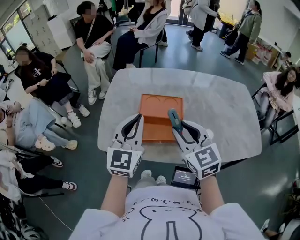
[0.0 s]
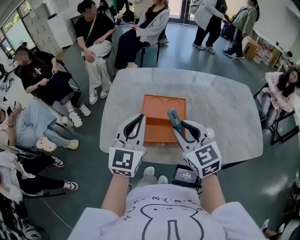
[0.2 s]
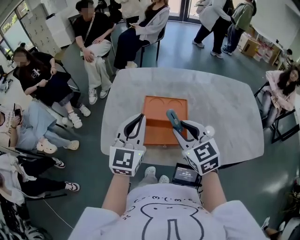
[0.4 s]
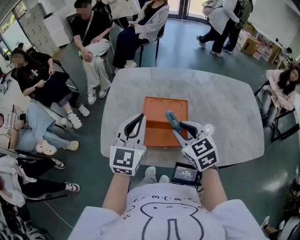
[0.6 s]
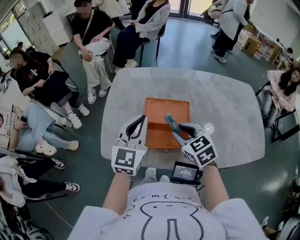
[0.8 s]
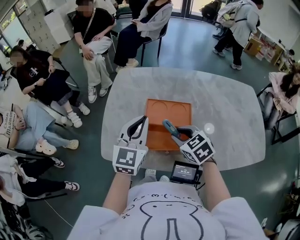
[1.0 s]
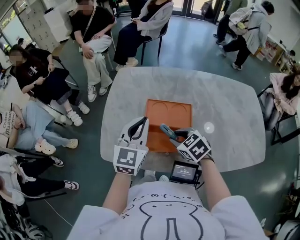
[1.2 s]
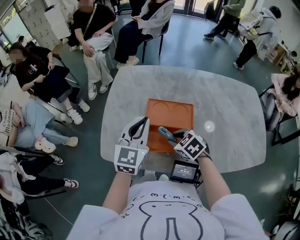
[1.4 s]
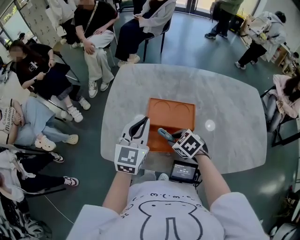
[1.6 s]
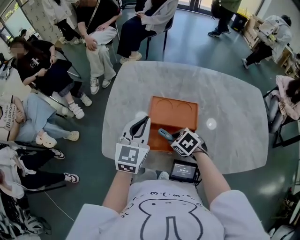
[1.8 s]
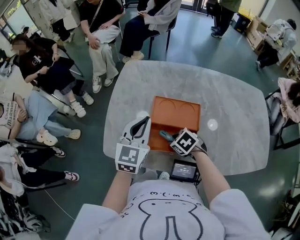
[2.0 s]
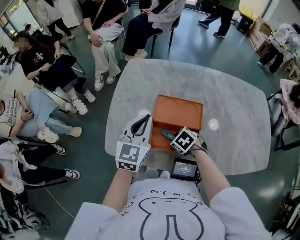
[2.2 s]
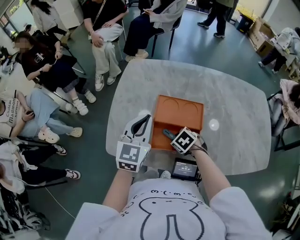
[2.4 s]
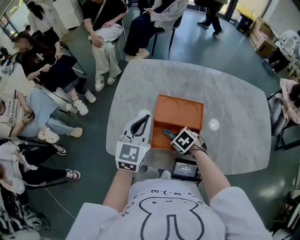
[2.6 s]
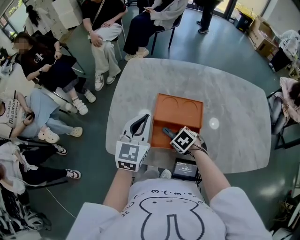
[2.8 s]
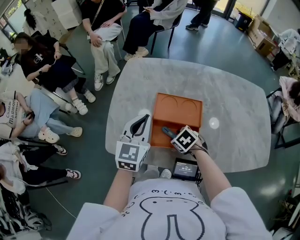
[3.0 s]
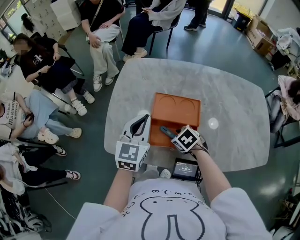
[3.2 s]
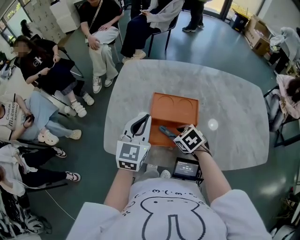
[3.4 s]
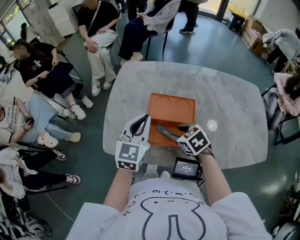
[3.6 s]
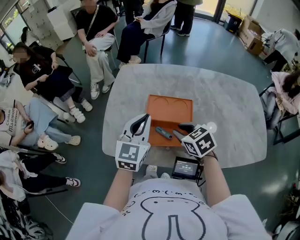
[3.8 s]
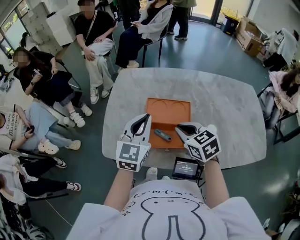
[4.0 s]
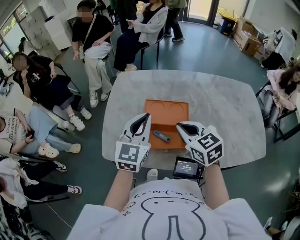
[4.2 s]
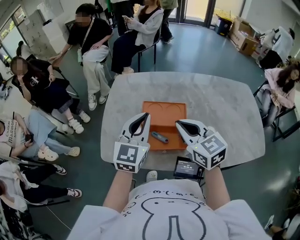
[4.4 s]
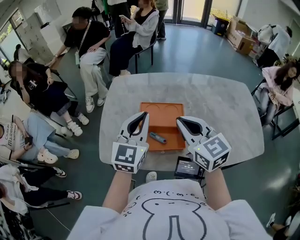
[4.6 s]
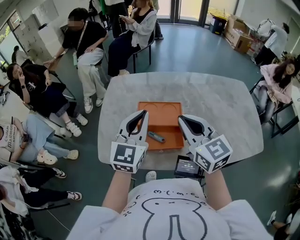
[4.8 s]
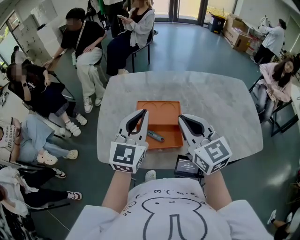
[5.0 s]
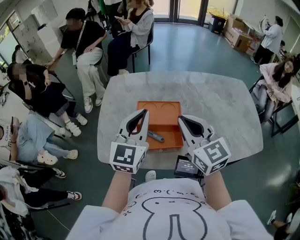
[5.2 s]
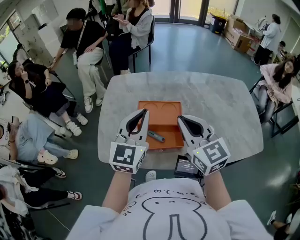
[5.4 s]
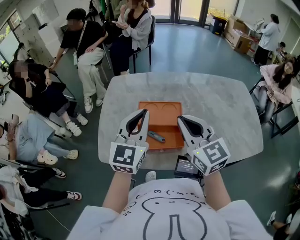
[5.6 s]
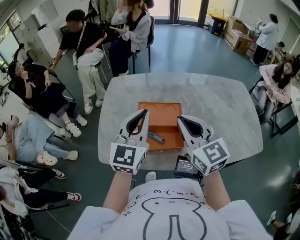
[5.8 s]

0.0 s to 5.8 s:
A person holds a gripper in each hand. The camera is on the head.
0.0 to 1.4 s: The right gripper travels downward by about 20 cm, and points its fingers roughly 40 degrees further downward. Meanwhile the left gripper shifts some 10 cm forward and downward.
1.4 to 2.8 s: The right gripper goes some 10 cm downward.
2.8 to 4.4 s: The right gripper travels upward by some 25 cm, angles its fingers upward, by approximately 50 degrees, and closes up. Meanwhile the left gripper moves upward, about 5 cm.
4.4 to 5.8 s: The right gripper goes roughly 5 cm upward.

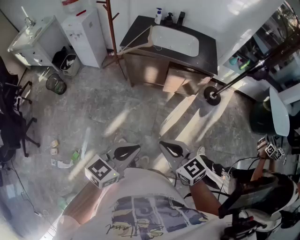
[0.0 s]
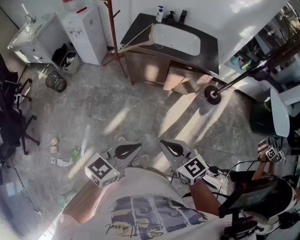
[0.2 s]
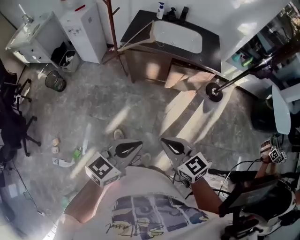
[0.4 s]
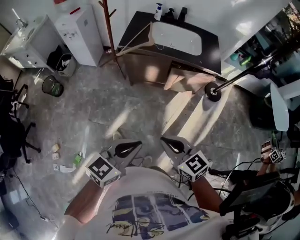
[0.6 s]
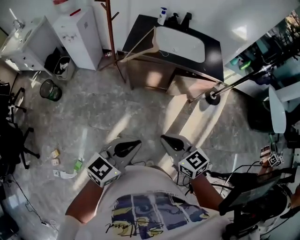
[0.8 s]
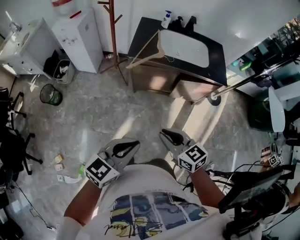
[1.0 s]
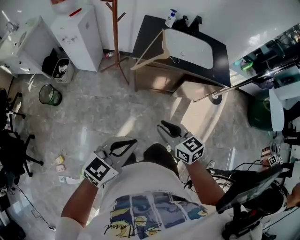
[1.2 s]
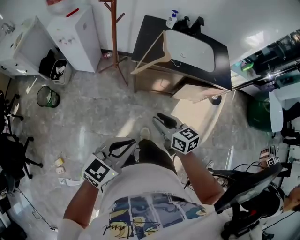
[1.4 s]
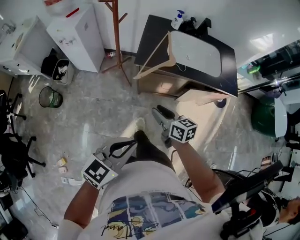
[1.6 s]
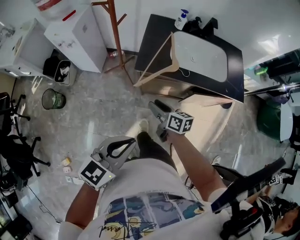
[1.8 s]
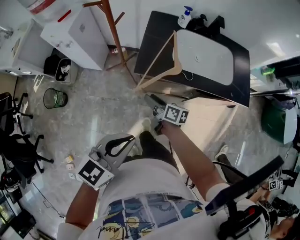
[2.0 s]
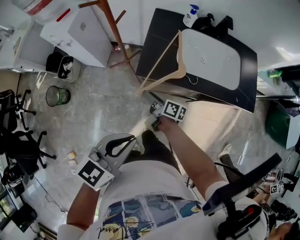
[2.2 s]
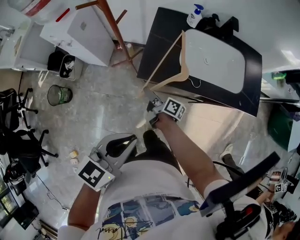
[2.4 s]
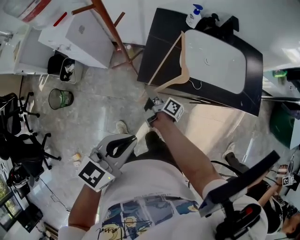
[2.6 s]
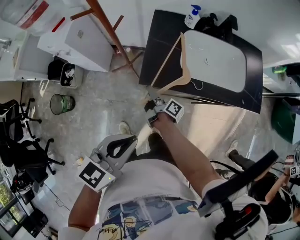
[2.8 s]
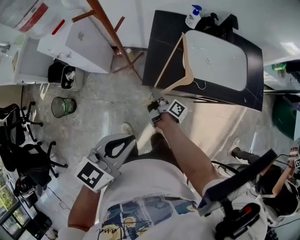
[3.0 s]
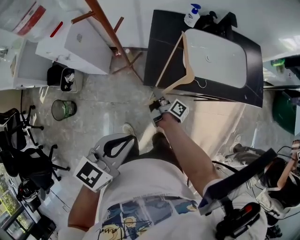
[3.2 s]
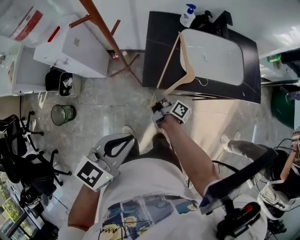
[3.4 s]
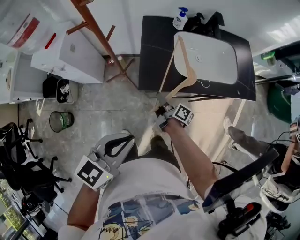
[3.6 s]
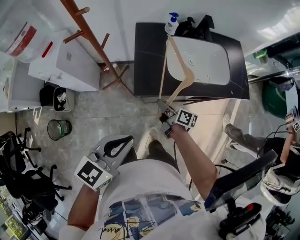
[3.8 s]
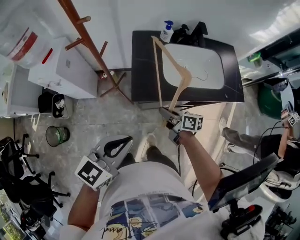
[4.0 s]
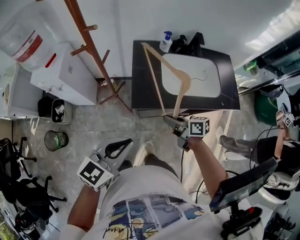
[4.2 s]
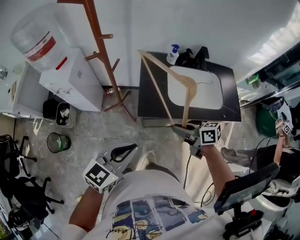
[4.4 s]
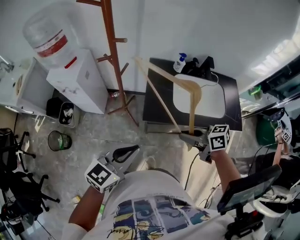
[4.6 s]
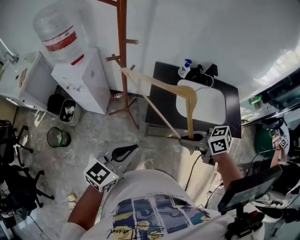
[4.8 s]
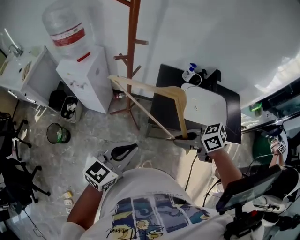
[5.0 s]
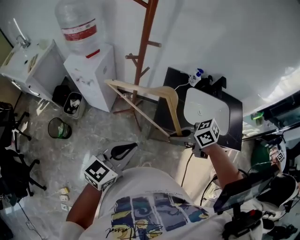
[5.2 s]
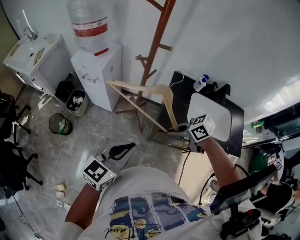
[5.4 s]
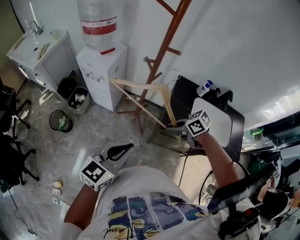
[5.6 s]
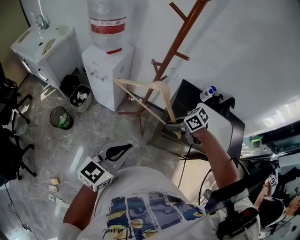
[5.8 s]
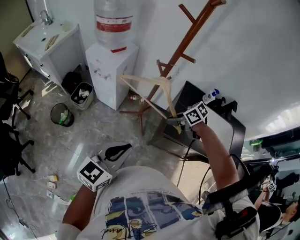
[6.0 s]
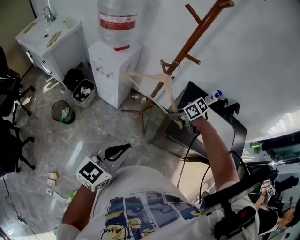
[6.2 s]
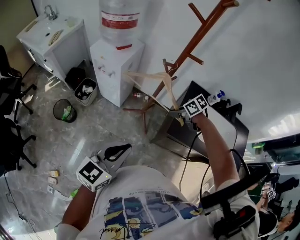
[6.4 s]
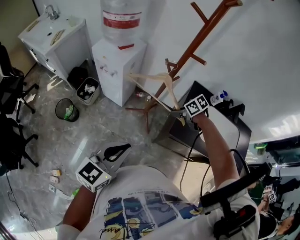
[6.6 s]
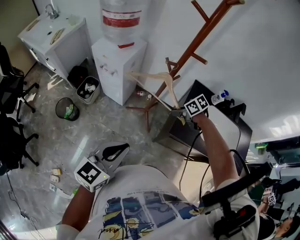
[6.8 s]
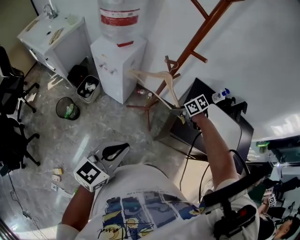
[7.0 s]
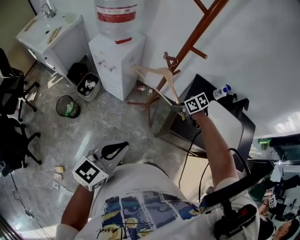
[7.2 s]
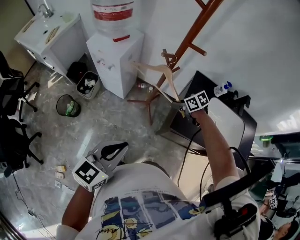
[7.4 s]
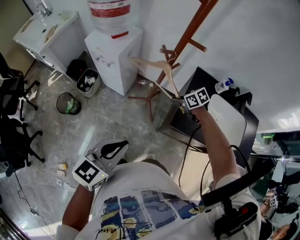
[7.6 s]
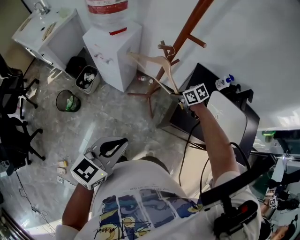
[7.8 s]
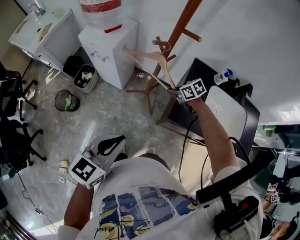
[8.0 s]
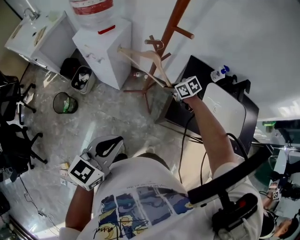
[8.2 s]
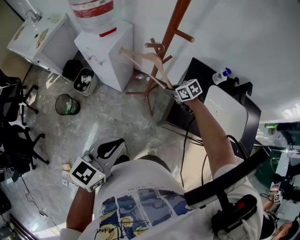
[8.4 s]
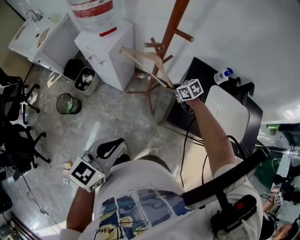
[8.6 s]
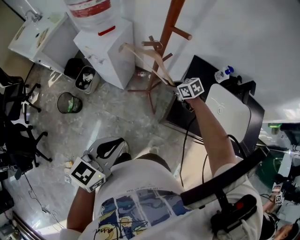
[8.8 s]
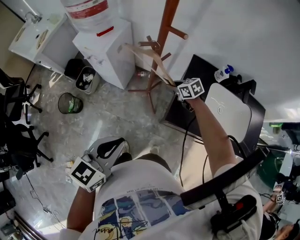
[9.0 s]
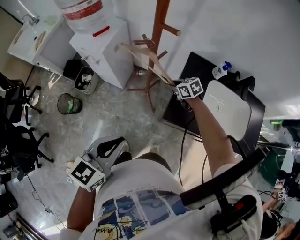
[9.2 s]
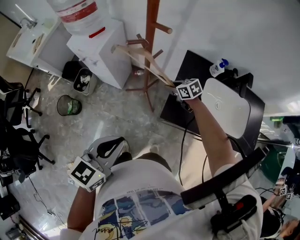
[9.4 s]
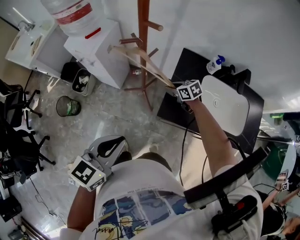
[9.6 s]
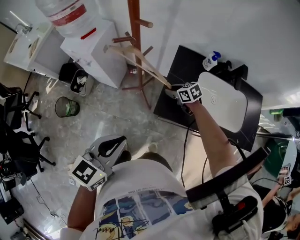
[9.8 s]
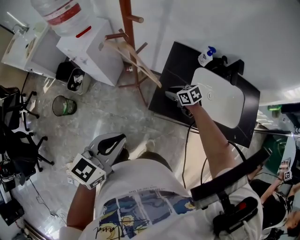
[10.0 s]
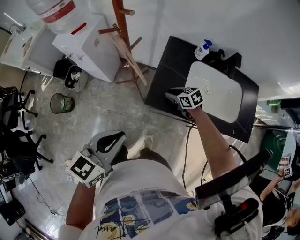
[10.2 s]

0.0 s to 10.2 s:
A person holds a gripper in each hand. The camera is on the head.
0.0 to 1.4 s: The right gripper is displaced forward and to the left by about 35 cm, rotates about 20 degrees, and opens. Meanwhile the left gripper moves to the left and forward, some 30 cm.
1.4 to 3.0 s: The left gripper goes approximately 25 cm forward. The right gripper is displaced forward and downward by roughly 35 cm, twists roughly 70 degrees clockwise, seen from behind, and opens, then closes again.
3.0 to 4.4 s: The right gripper heads upward and to the right, covering roughly 25 cm, and twists some 50 degrees counterclockwise, seen from behind.
4.4 to 5.8 s: The left gripper shifts by roughly 15 cm, and changes its angle by roughly 20 degrees. Meanwhile the right gripper travels upward and back again, about 5 cm each way, and turns by about 50 degrees.
5.8 to 7.2 s: The right gripper changes place by about 15 cm.
7.2 to 8.8 s: The right gripper shifts some 5 cm forward.
8.8 to 10.2 s: The right gripper travels backward and to the right by approximately 20 cm. Meanwhile the left gripper heads to the right, covering approximately 10 cm.

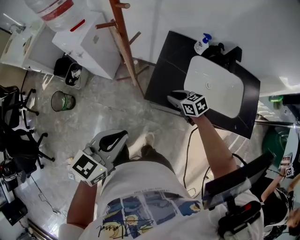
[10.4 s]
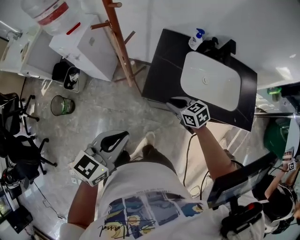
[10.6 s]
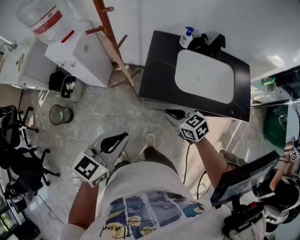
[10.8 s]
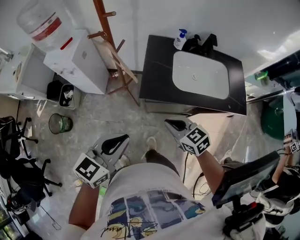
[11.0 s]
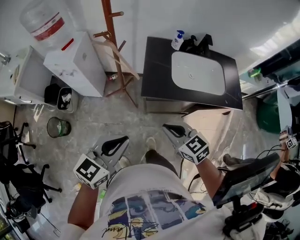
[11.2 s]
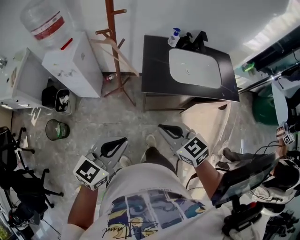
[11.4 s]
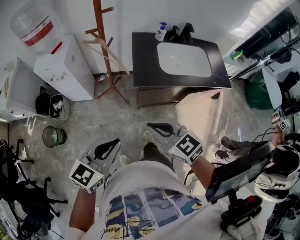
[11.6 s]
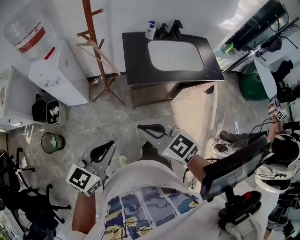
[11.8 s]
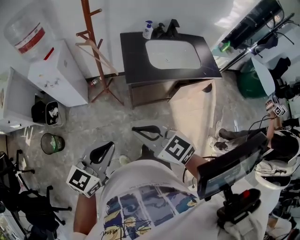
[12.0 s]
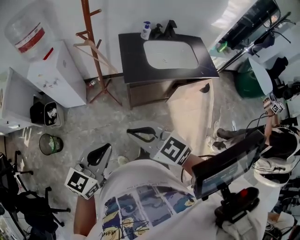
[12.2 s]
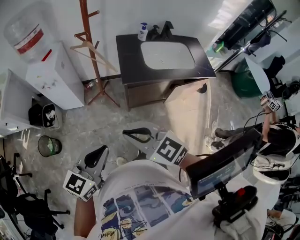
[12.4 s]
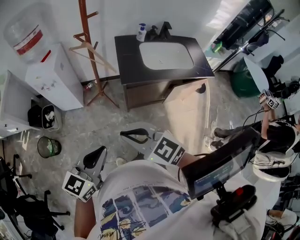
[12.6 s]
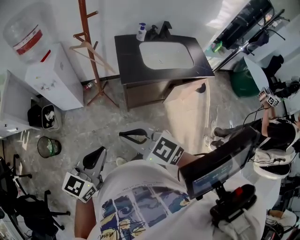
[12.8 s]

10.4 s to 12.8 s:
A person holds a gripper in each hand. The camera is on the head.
10.4 to 11.6 s: The left gripper moves backward and to the left, some 20 cm, and turns by roughly 20 degrees; the right gripper goes roughly 40 cm backward, upward and to the left, turns by about 30 degrees, and closes up.
11.6 to 12.8 s: The left gripper goes about 5 cm backward. Meanwhile the right gripper heads to the left and backward, covering roughly 10 cm.

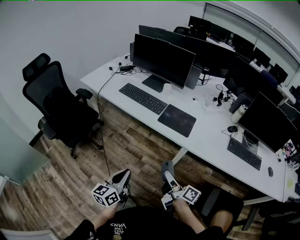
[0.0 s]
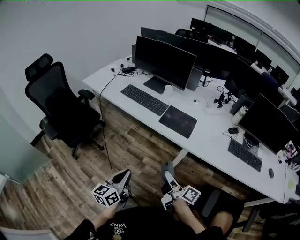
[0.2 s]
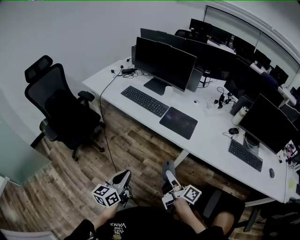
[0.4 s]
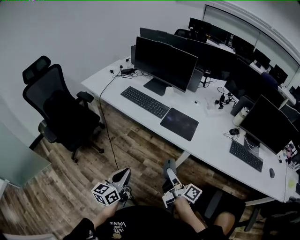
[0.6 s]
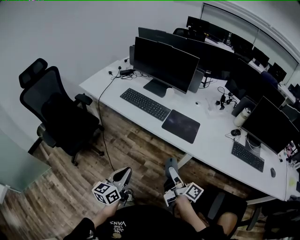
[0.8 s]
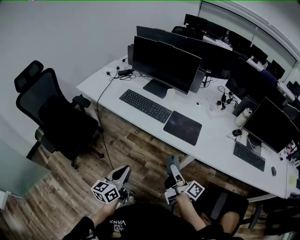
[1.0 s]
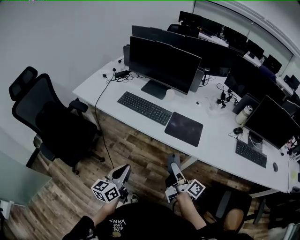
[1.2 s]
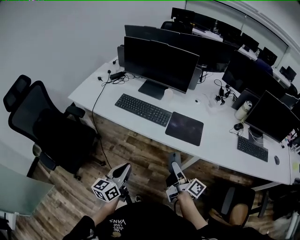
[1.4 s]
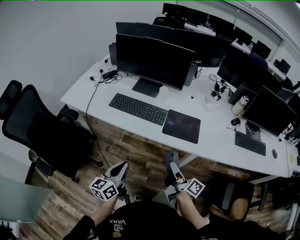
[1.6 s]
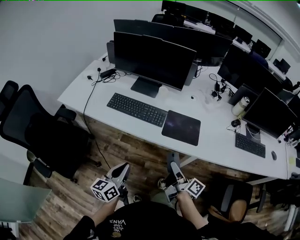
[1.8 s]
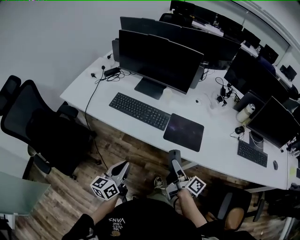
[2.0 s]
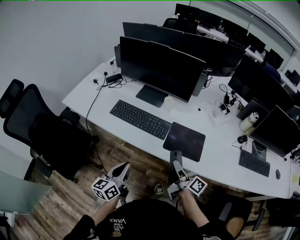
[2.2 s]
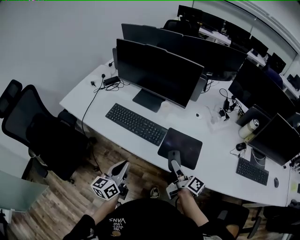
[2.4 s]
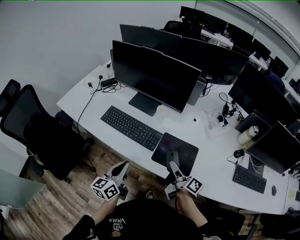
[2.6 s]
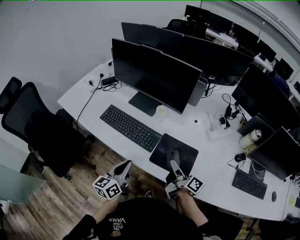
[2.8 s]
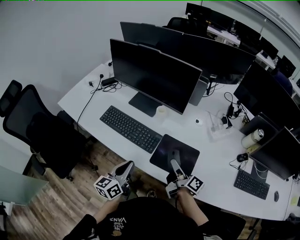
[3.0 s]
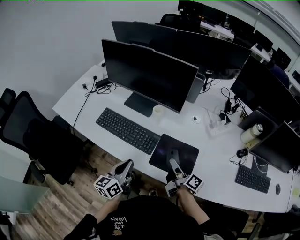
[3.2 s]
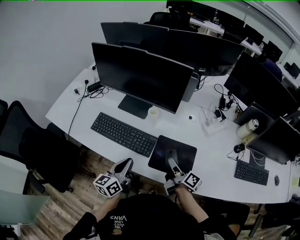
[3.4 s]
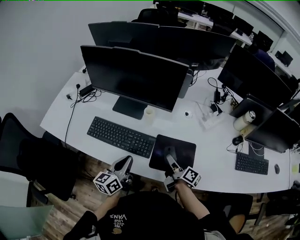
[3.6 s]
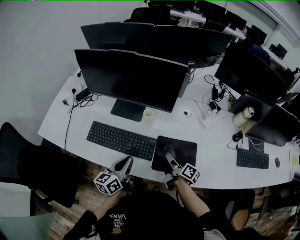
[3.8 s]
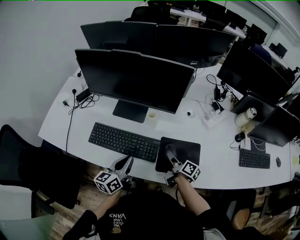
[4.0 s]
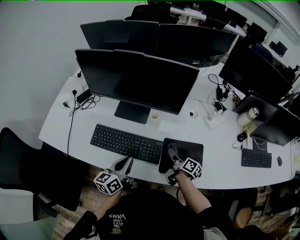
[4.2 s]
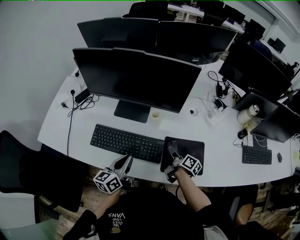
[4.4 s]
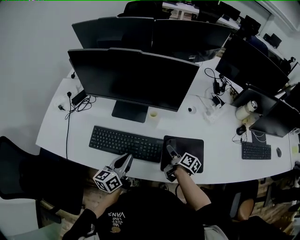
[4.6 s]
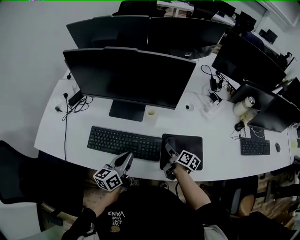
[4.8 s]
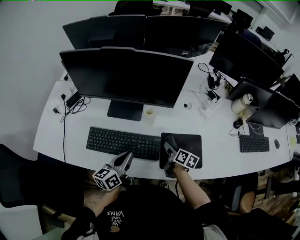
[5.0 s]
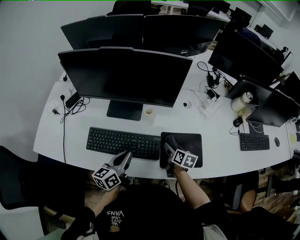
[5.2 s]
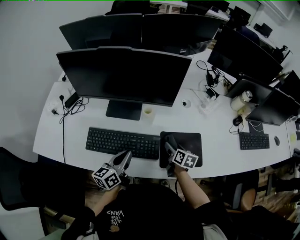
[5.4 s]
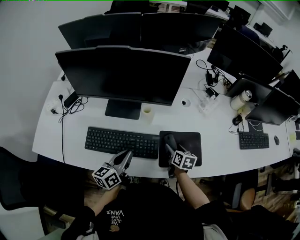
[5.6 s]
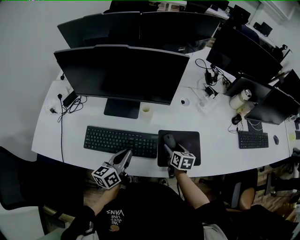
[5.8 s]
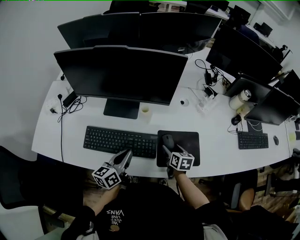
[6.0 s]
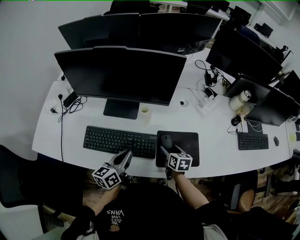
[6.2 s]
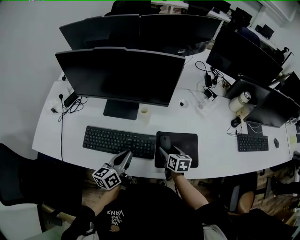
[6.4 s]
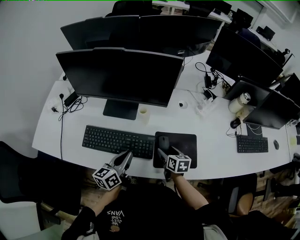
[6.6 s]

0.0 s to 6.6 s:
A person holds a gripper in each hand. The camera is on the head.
0.0 to 1.6 s: The grippers both shift forward and to the left by approximately 20 cm.
1.6 to 3.2 s: The grippers both shift forward and to the right by roughly 25 cm.
3.2 to 5.0 s: The left gripper travels forward and to the left by some 15 cm, and turns by approximately 20 degrees. The right gripper is displaced downward, forward and to the left by about 15 cm, and swivels about 40 degrees.
5.0 to 6.6 s: The right gripper rotates approximately 30 degrees.
